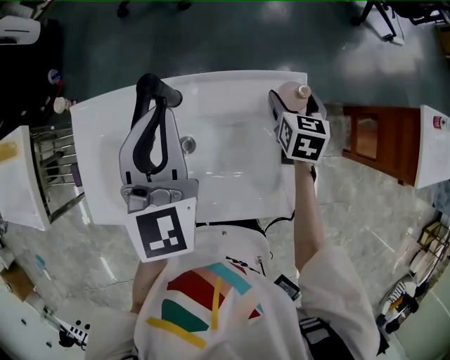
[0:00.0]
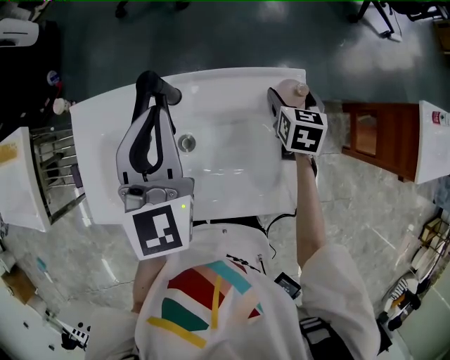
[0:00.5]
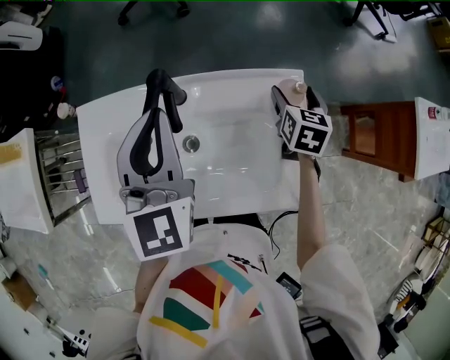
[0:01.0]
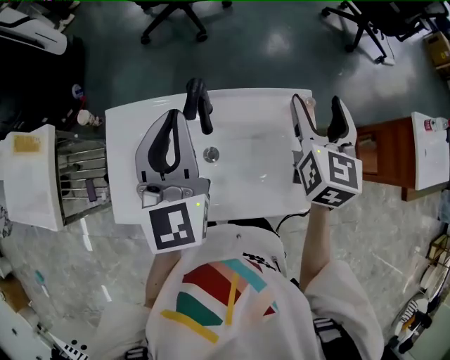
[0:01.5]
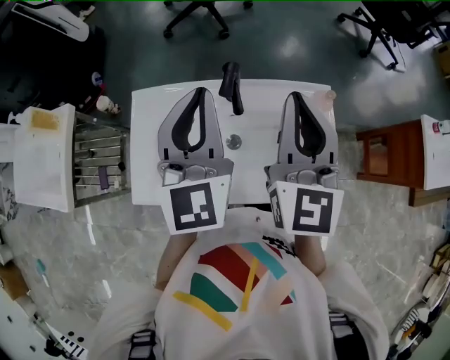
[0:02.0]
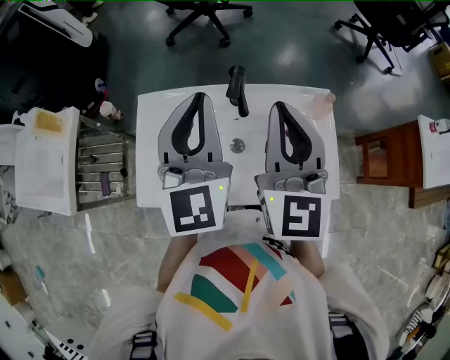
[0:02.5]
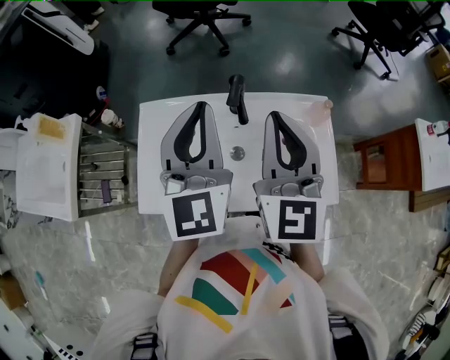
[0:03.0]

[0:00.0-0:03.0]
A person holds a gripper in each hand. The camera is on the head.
0:00.0 to 0:01.5: The right gripper moves upward, some 25 cm, and turns by approximately 30 degrees. Meanwhile the left gripper travels upward by some 10 cm.
0:01.5 to 0:03.0: The left gripper travels to the left by approximately 5 cm. Meanwhile the right gripper goes some 25 cm to the left, backward and upward, rotates roughly 20 degrees, and closes.

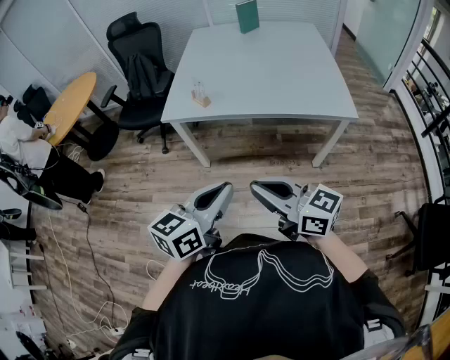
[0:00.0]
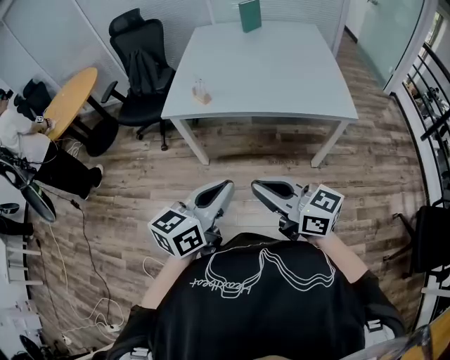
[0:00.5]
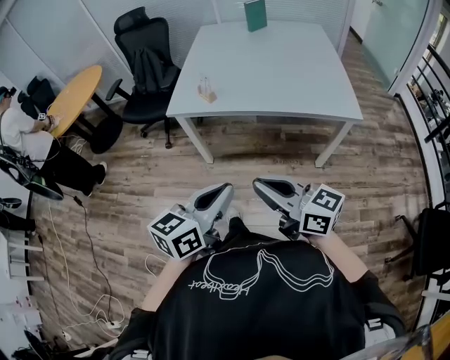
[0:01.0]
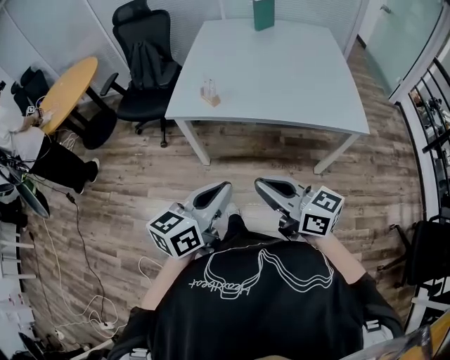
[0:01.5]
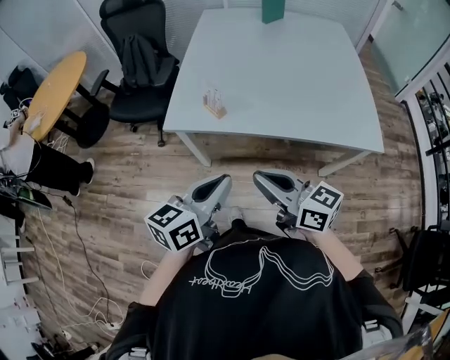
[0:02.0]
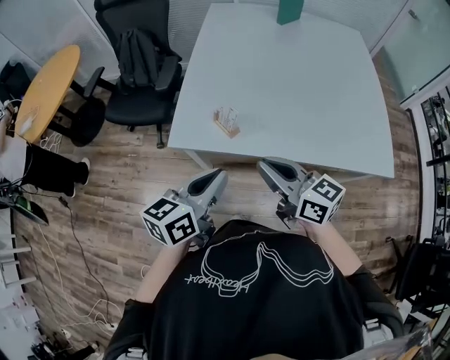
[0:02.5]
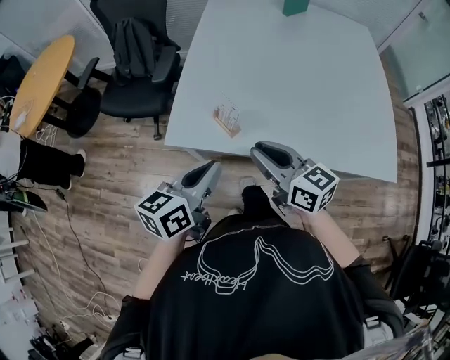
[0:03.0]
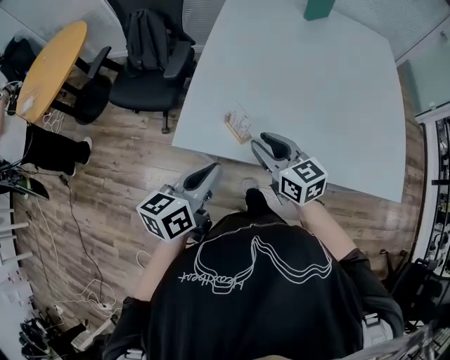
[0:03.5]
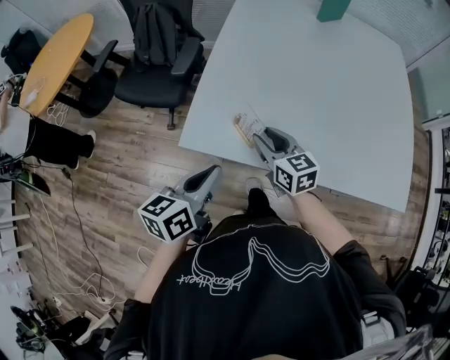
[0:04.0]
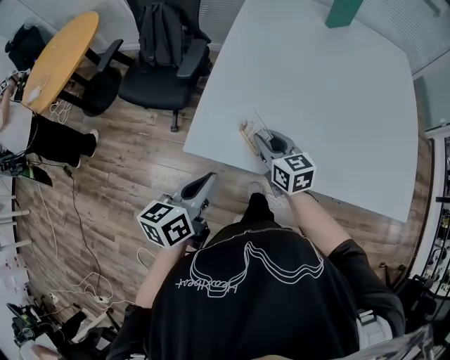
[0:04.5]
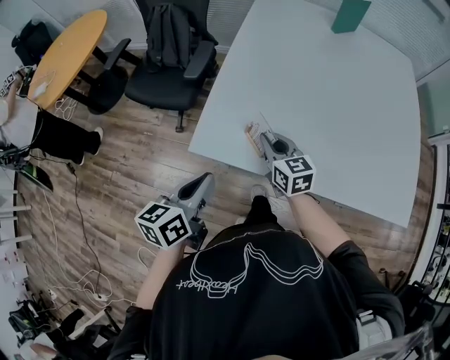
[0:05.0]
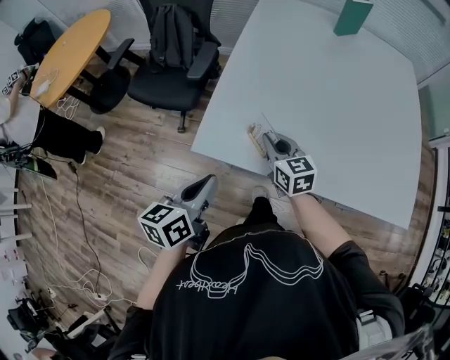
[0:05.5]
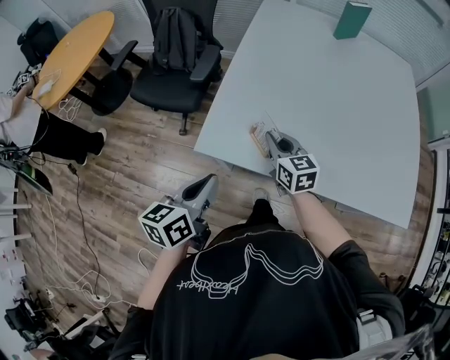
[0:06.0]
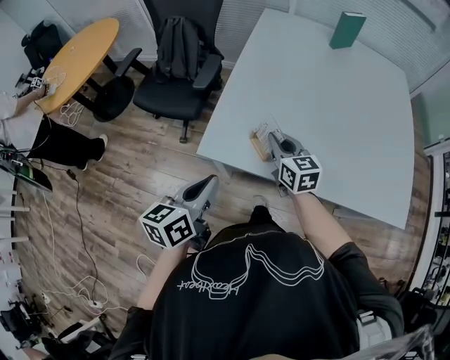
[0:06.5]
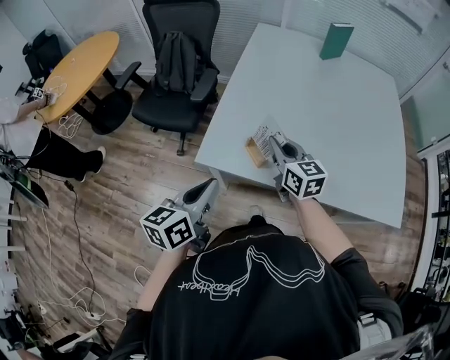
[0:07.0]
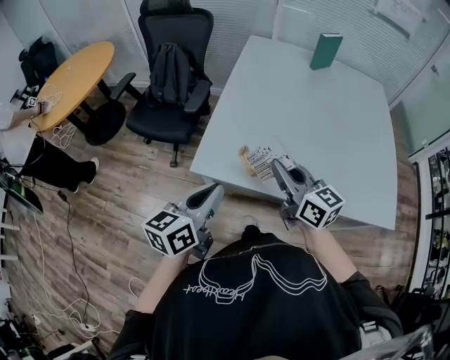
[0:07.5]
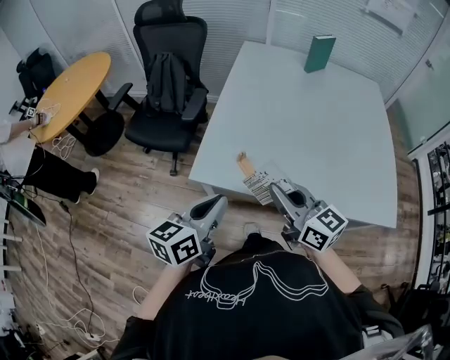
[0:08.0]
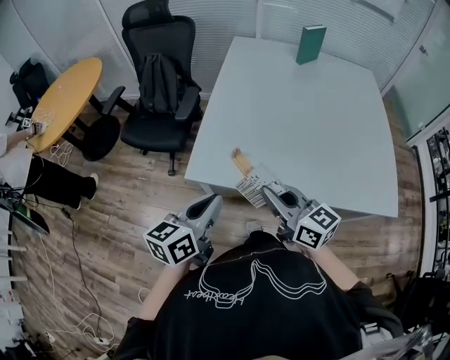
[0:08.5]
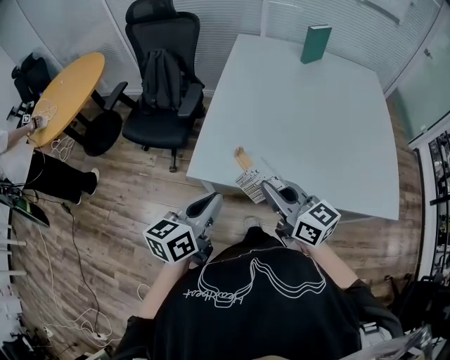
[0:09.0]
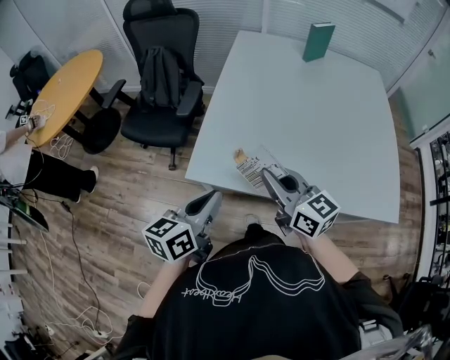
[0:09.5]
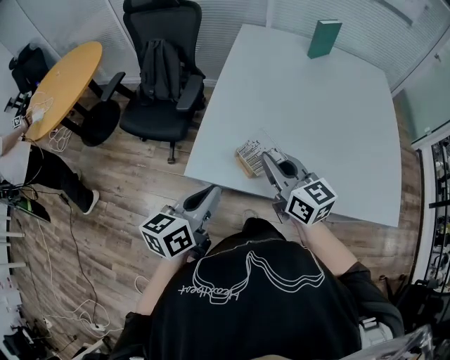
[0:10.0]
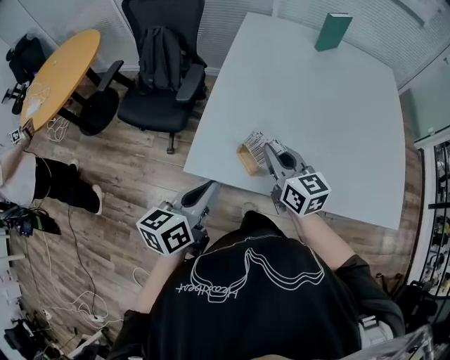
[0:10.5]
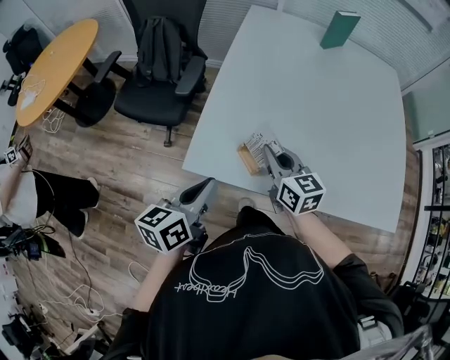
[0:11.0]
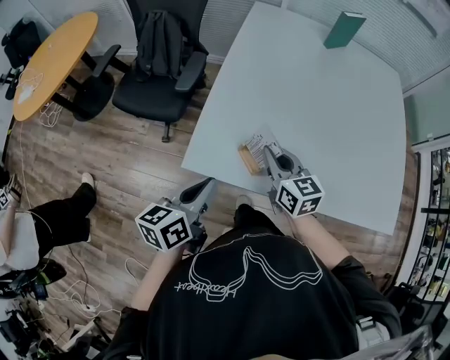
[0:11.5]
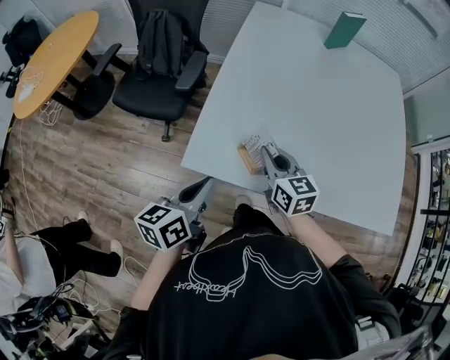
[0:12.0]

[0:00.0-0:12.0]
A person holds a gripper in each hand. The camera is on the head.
0:00.0 to 0:02.0: The grippers both shift forward by approximately 25 cm.
0:02.0 to 0:04.0: The left gripper moves forward and to the left, approximately 25 cm; the right gripper shifts some 35 cm forward and downward, turns by some 20 degrees, and opens up.
0:04.0 to 0:06.0: The right gripper closes its fingers; the left gripper shifts about 5 cm to the left.
0:06.0 to 0:08.0: The right gripper goes about 20 cm upward and backward, and changes its angle by some 20 degrees. The left gripper goes about 5 cm upward.
0:08.0 to 0:10.0: The right gripper moves forward, roughly 10 cm; the left gripper shifts roughly 5 cm forward.
0:10.0 to 0:12.0: The right gripper heads downward and forward, covering some 15 cm. The left gripper shifts about 5 cm downward.

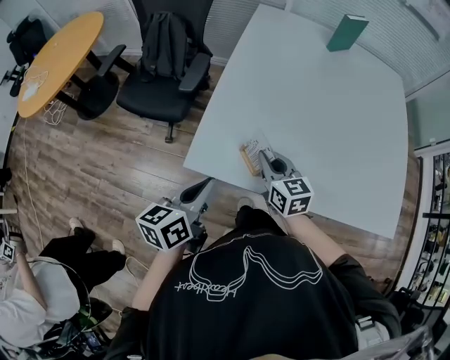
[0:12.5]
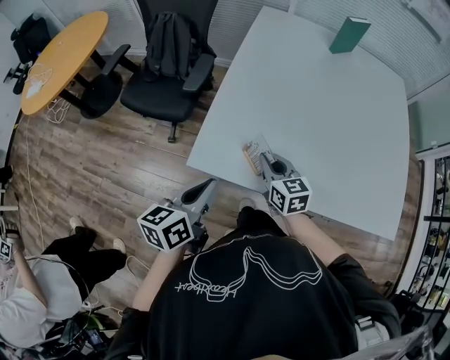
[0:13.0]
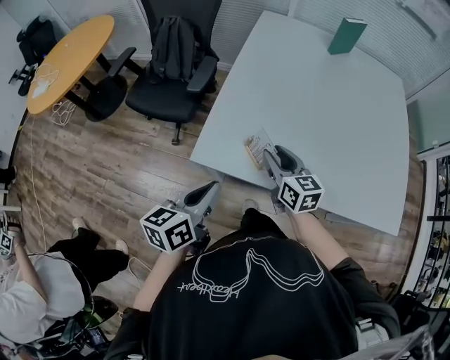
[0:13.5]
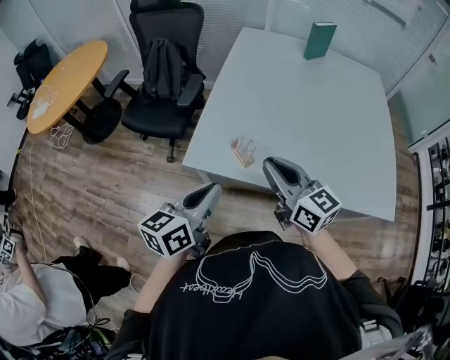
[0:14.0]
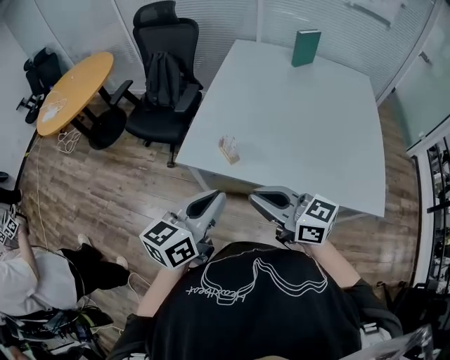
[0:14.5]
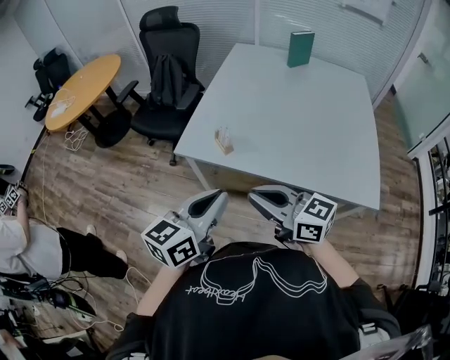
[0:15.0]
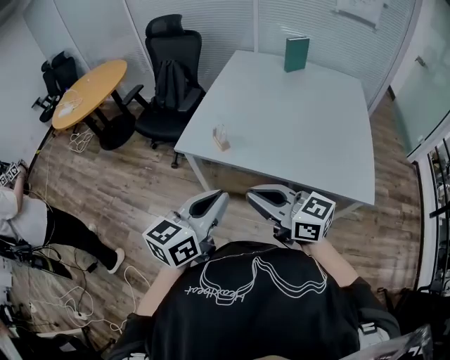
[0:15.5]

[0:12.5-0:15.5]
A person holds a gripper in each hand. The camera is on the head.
0:12.5 to 0:14.0: The right gripper travels upward and backward by approximately 20 cm, turns by roughly 20 degrees, and opens, then closes once more; the left gripper is displaced backward and upward by approximately 10 cm.
0:14.0 to 0:15.5: The left gripper shifts some 25 cm backward and to the right, while the right gripper moves backward, approximately 25 cm, and turns by some 20 degrees.

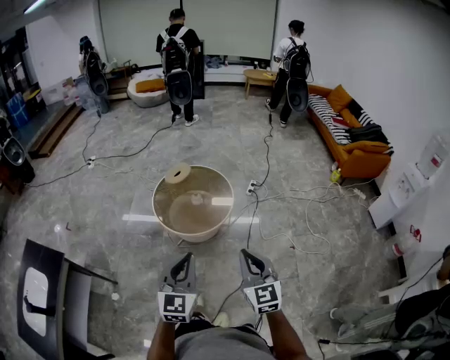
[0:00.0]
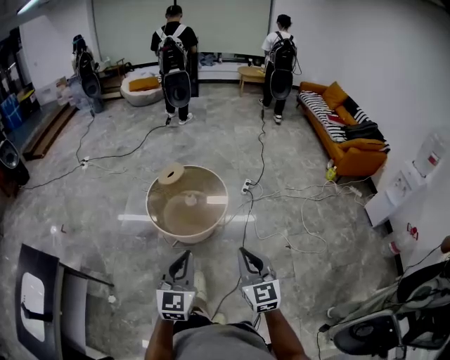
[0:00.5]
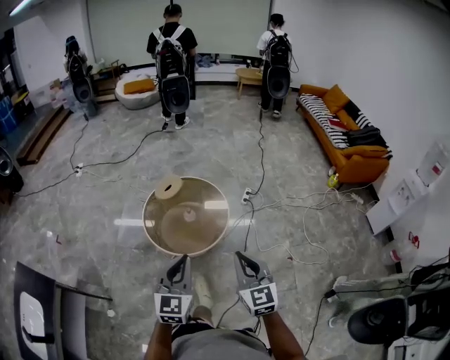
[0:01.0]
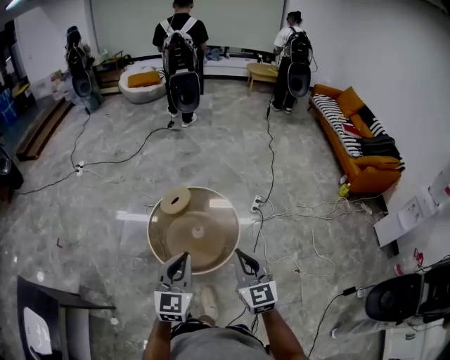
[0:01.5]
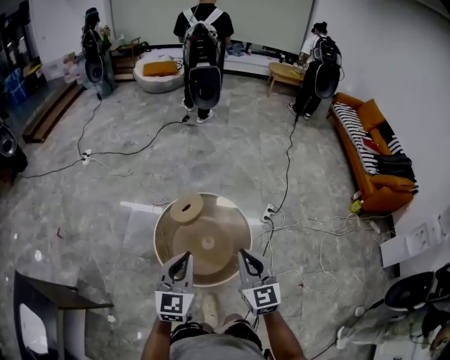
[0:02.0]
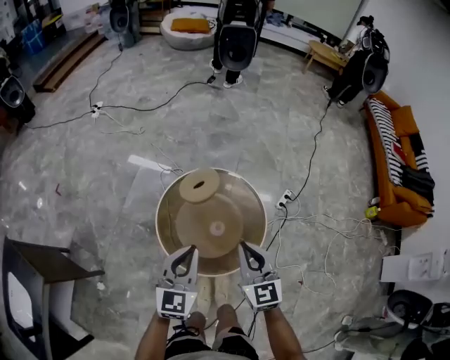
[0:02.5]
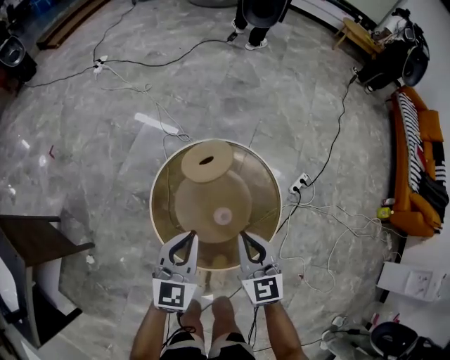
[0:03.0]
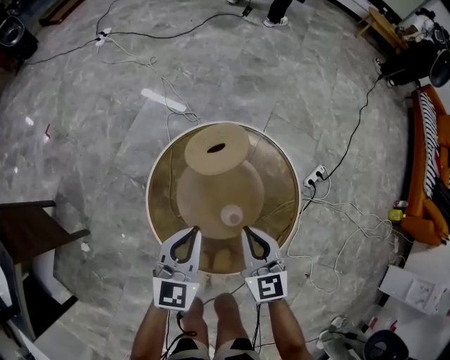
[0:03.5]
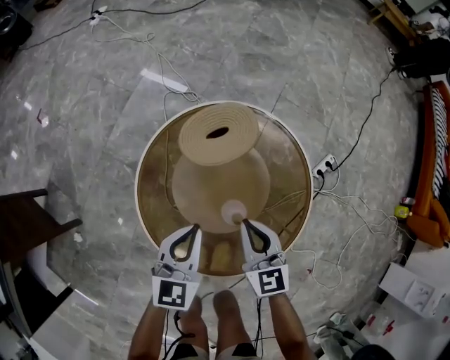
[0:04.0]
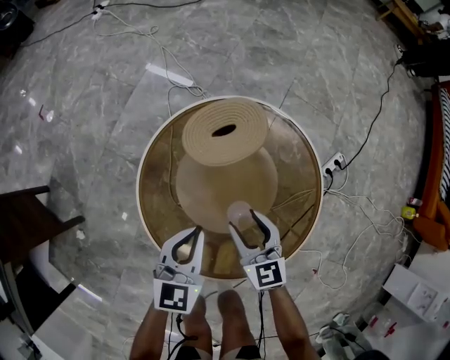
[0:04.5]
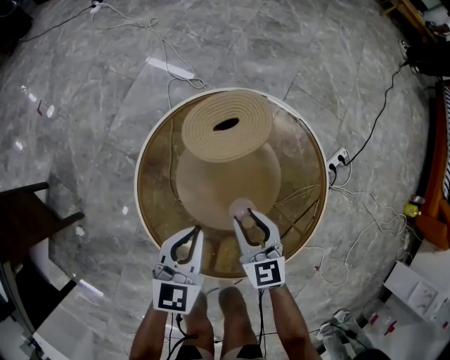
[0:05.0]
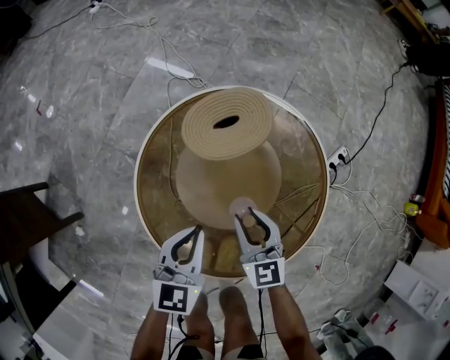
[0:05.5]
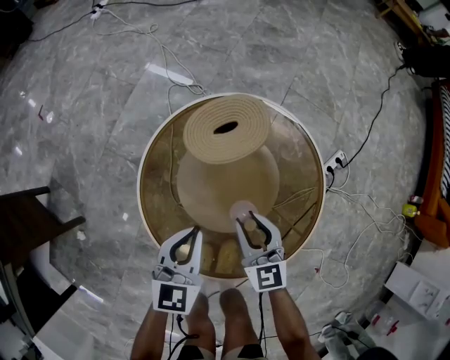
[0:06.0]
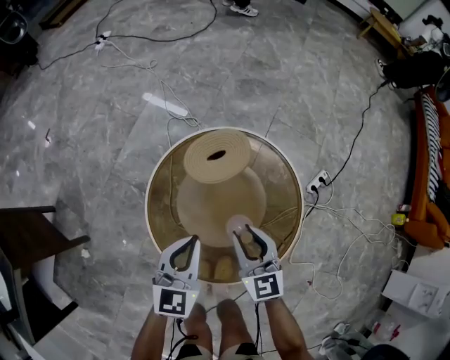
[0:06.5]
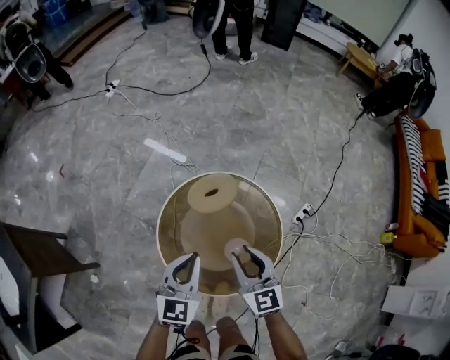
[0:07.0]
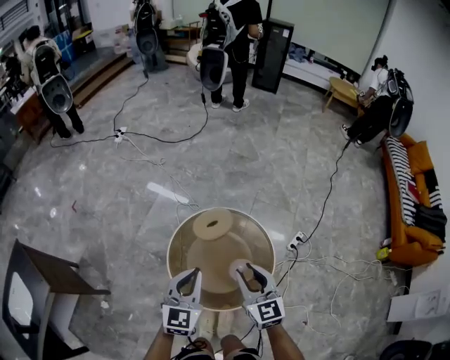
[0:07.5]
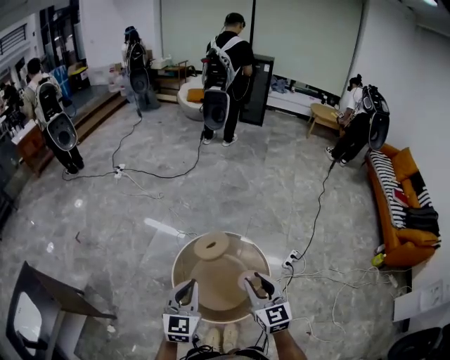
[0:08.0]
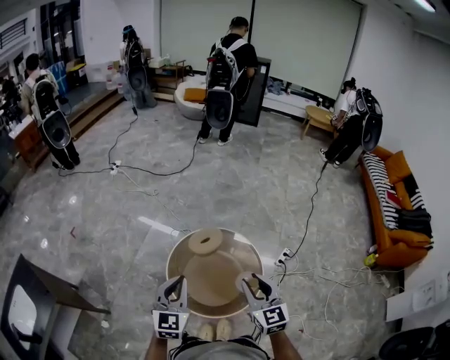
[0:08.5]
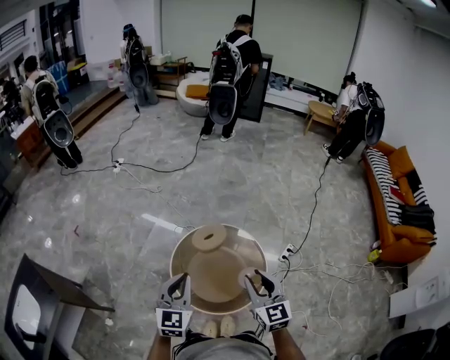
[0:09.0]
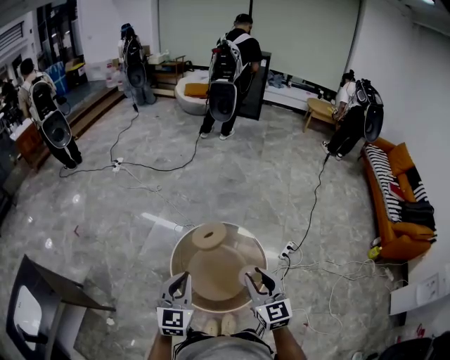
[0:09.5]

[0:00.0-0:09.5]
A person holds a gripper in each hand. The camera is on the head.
0:00.0 to 0:02.0: The two grippers travel together, forward, about 50 cm.
0:02.0 to 0:04.0: Both grippers move downward and forward, about 50 cm. The left gripper turns by approximately 30 degrees. Meanwhile the right gripper swivels some 30 degrees.
0:04.0 to 0:05.5: The right gripper shifts approximately 5 cm downward, and opens its fingers.
0:05.5 to 0:07.5: The two grippers go some 40 cm upward. The left gripper rotates roughly 20 degrees.
0:07.5 to 0:09.5: The left gripper is displaced upward and backward by approximately 15 cm; the right gripper moves backward and upward, roughly 15 cm.
